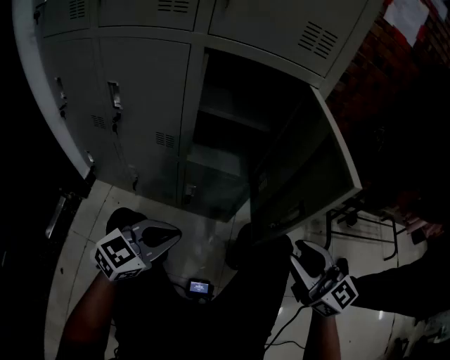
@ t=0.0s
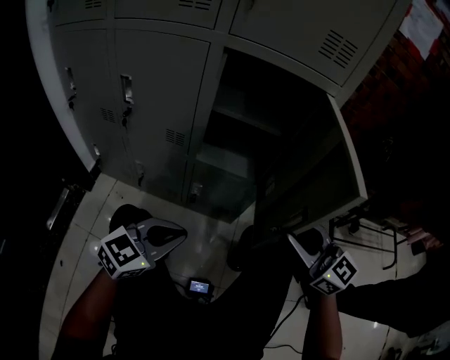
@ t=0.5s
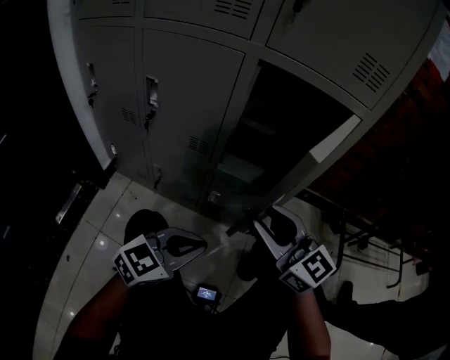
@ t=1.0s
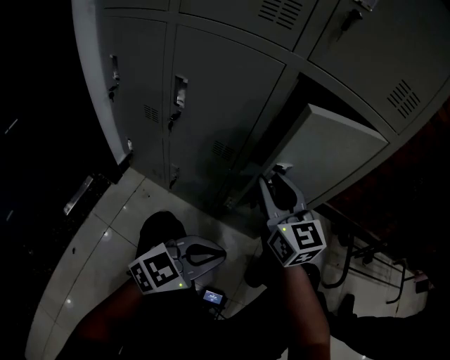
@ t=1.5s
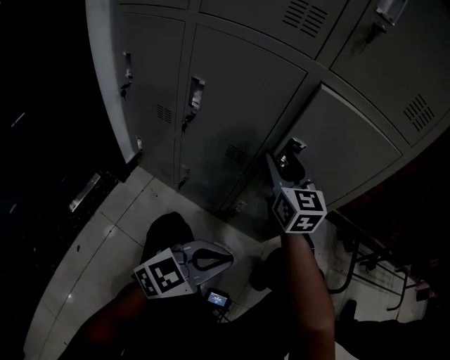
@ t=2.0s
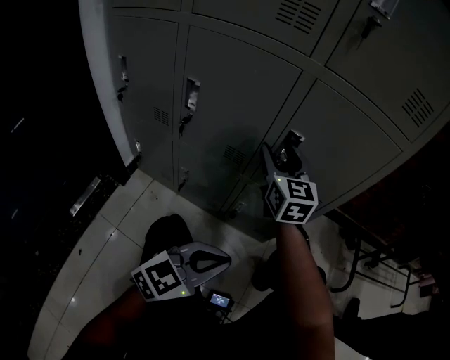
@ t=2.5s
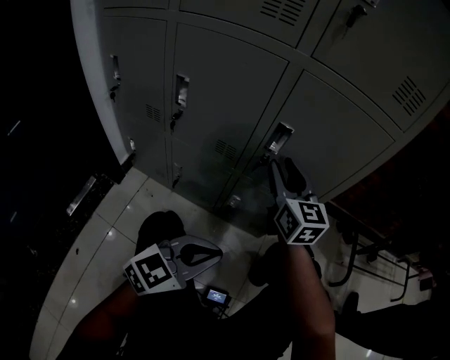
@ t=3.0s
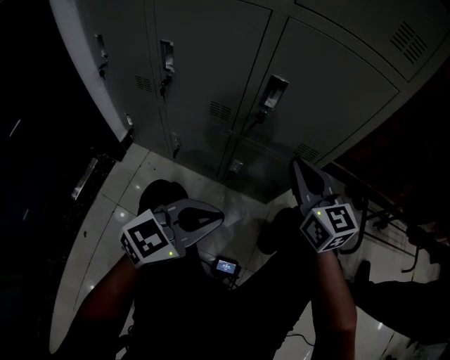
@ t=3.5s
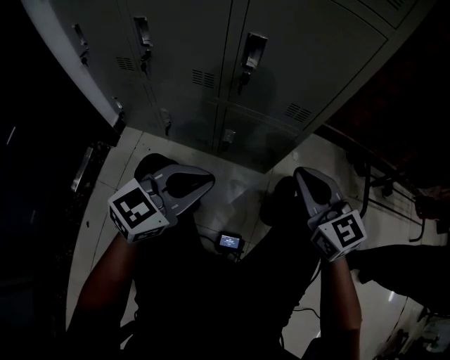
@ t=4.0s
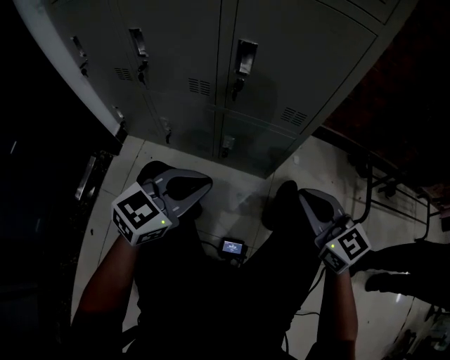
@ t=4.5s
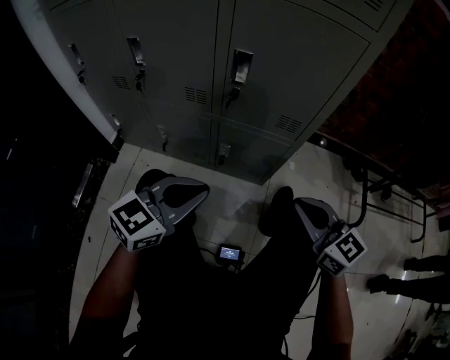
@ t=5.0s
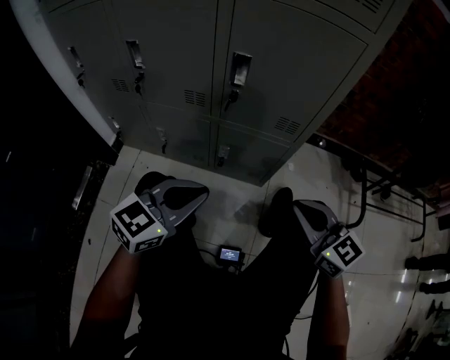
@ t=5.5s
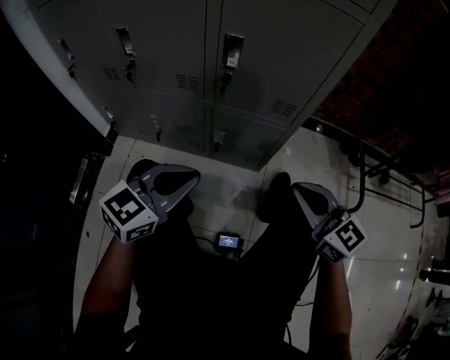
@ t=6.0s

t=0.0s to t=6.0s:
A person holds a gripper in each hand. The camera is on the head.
t=0.0s to t=2.0s: The right gripper shifts about 40 cm to the left and forward.
t=2.0s to t=4.0s: The right gripper heads to the right and backward, covering some 25 cm, and closes.
t=4.0s to t=6.0s: The right gripper moves some 5 cm.

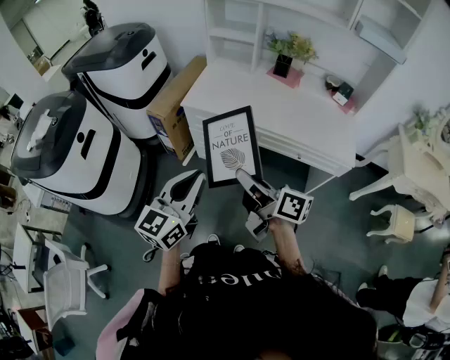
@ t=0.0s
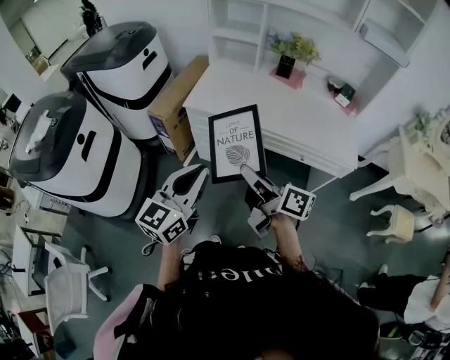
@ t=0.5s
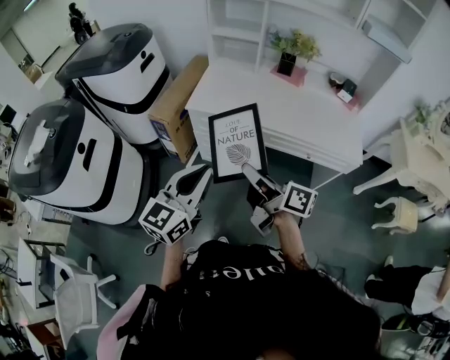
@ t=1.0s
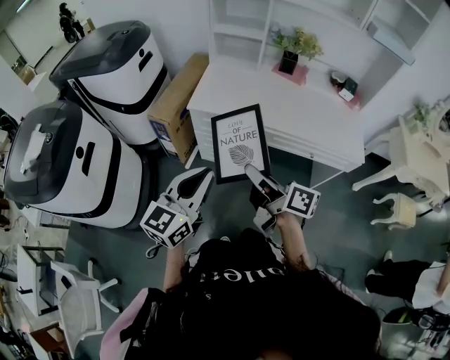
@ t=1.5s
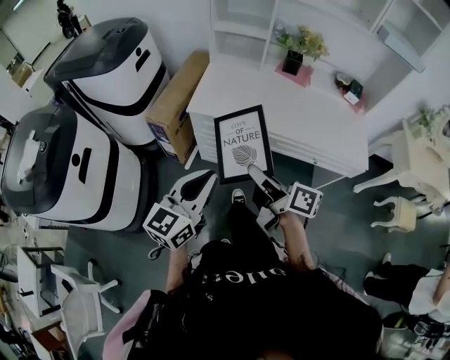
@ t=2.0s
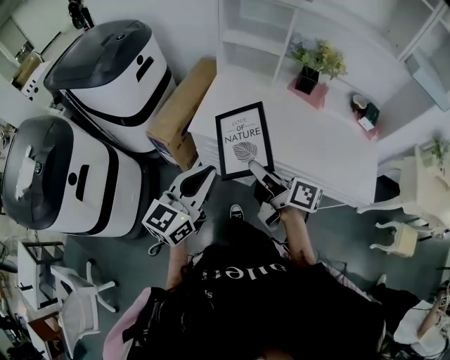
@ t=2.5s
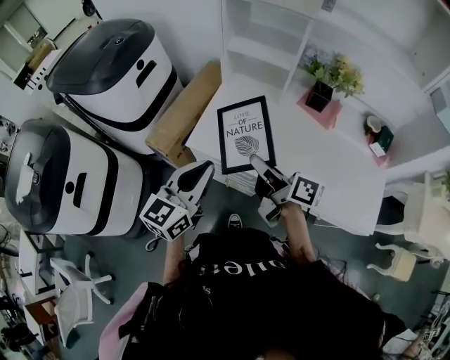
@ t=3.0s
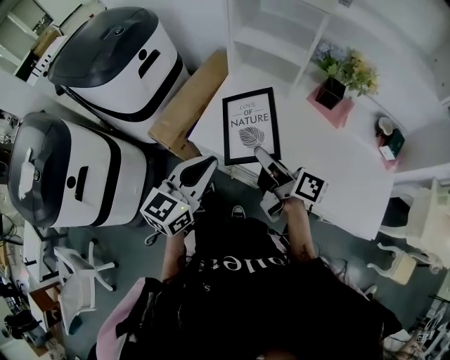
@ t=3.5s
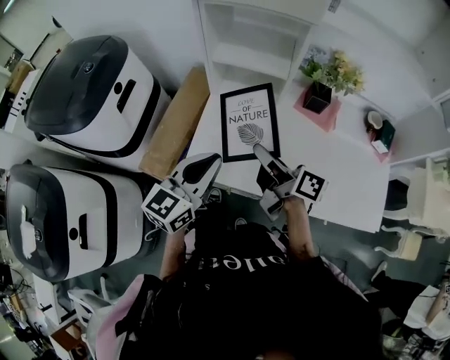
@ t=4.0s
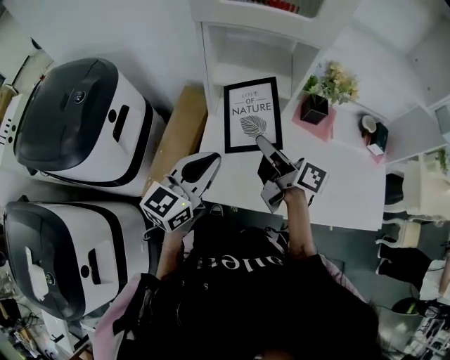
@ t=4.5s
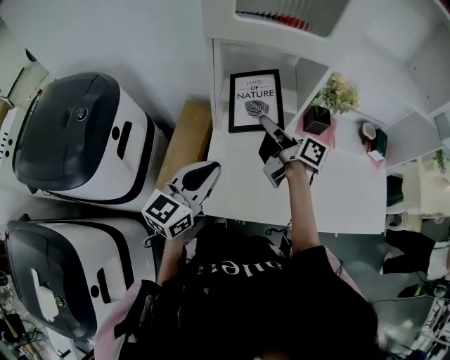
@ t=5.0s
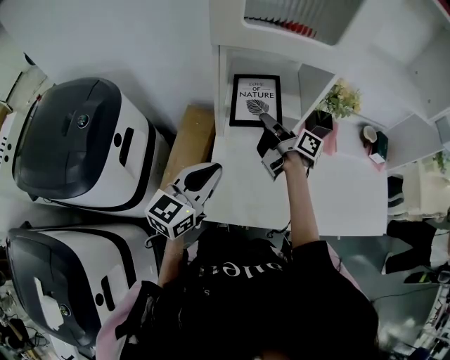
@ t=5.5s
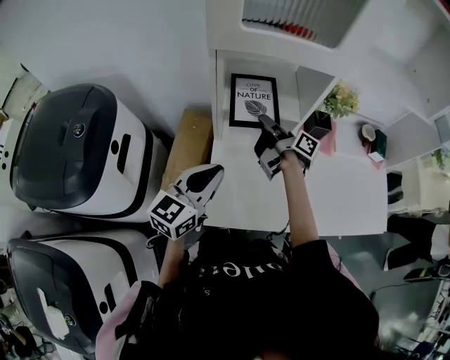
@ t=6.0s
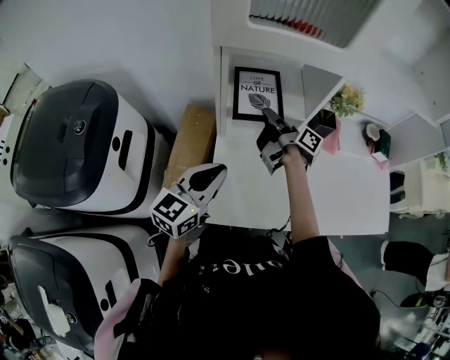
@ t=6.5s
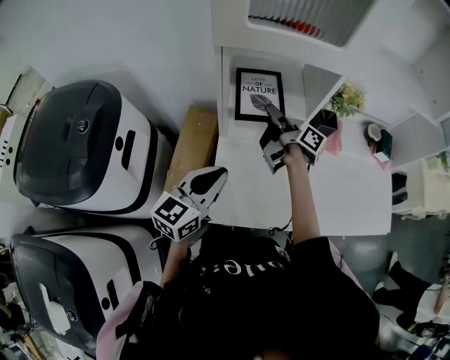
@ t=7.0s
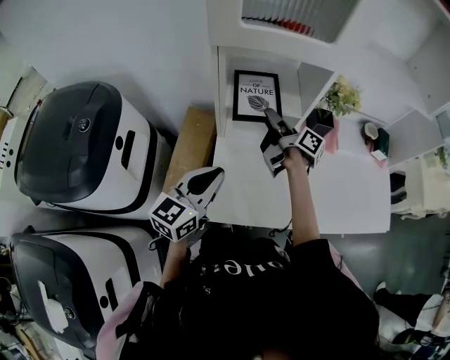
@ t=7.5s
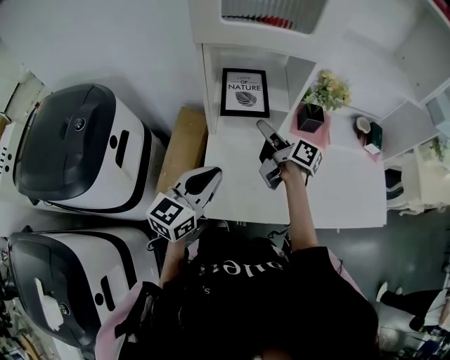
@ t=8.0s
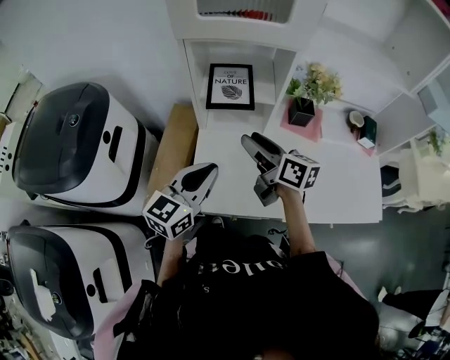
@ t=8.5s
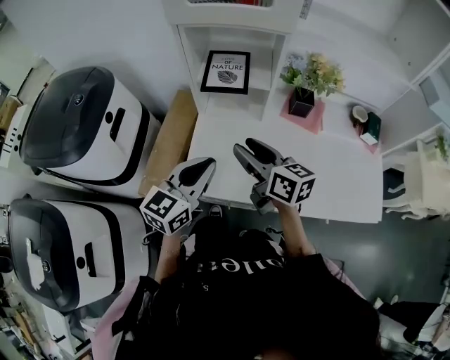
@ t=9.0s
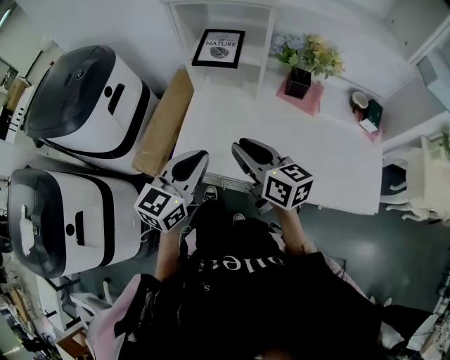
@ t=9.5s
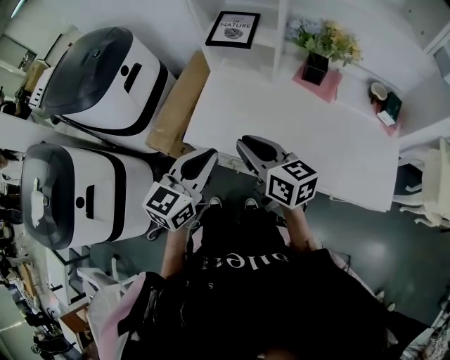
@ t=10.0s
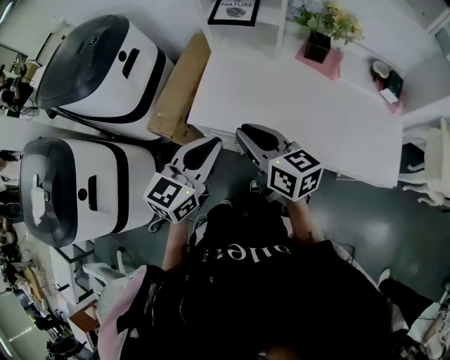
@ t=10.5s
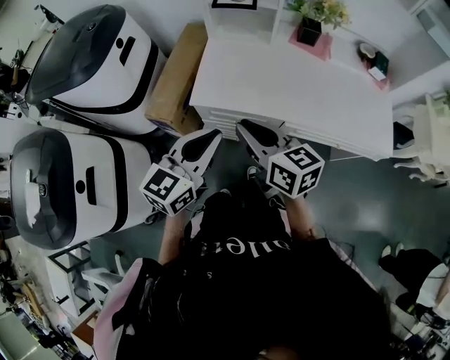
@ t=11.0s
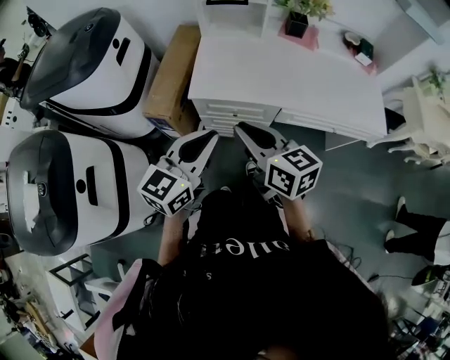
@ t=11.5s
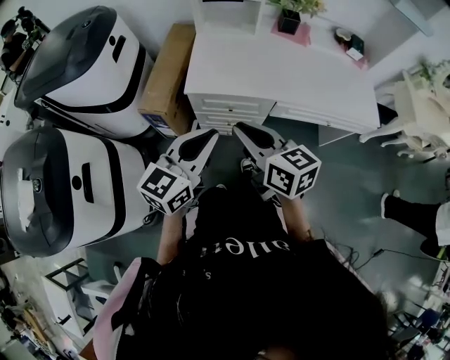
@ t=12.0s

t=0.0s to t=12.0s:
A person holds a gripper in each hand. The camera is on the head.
t=0.0s to t=2.0s: The grippers both shift forward and to the left by roughly 15 cm.
t=2.0s to t=4.0s: The two grippers travel together, forward, approximately 40 cm.
t=4.0s to t=6.0s: The right gripper is displaced forward by some 25 cm, and changes its angle by some 30 degrees. The left gripper travels forward and to the left by about 15 cm.
t=6.0s to t=8.0s: The right gripper moves backward, roughly 5 cm, and opens. Meanwhile the left gripper shifts by approximately 5 cm.
t=8.0s to t=10.0s: The left gripper goes roughly 25 cm backward and to the right. The right gripper shifts some 30 cm backward, rotates about 50 degrees, and closes.
t=10.0s to t=12.0s: The two grippers go approximately 25 cm backward and to the left.

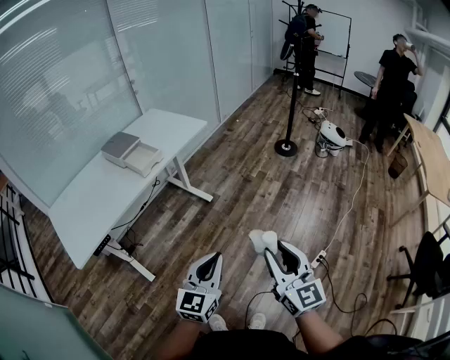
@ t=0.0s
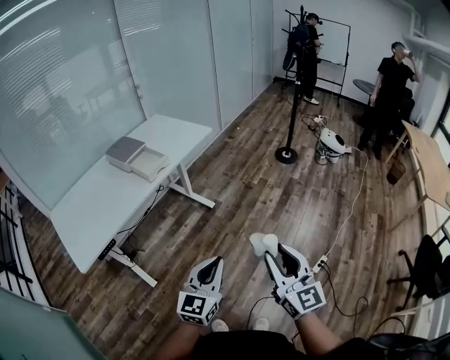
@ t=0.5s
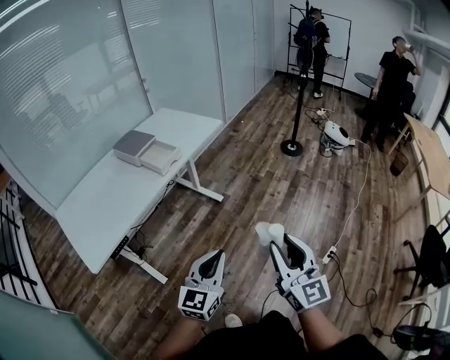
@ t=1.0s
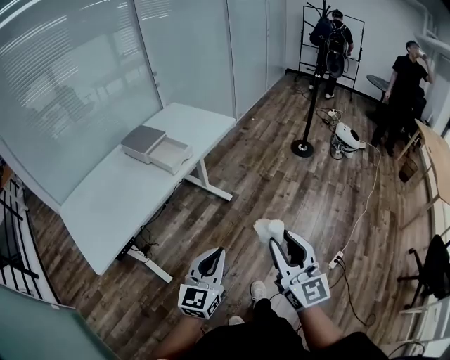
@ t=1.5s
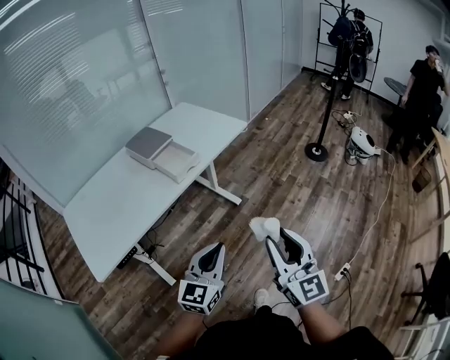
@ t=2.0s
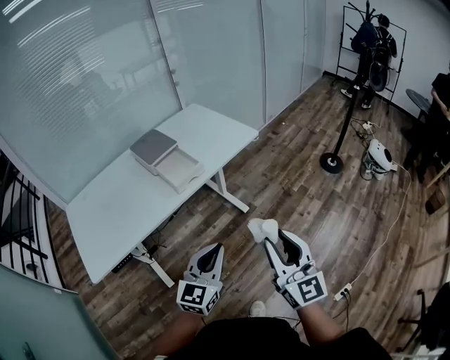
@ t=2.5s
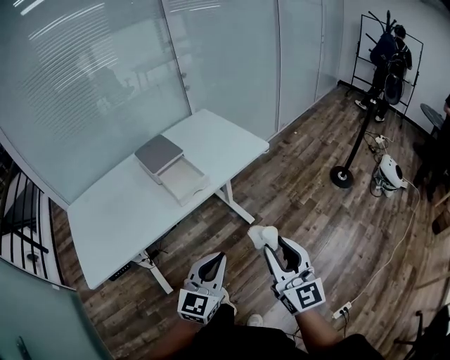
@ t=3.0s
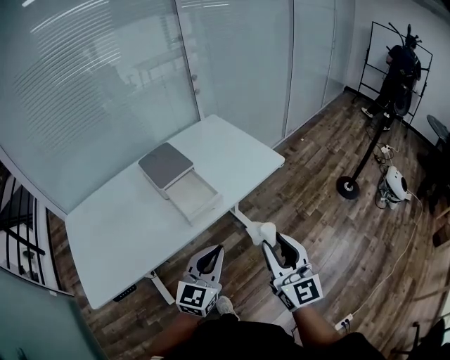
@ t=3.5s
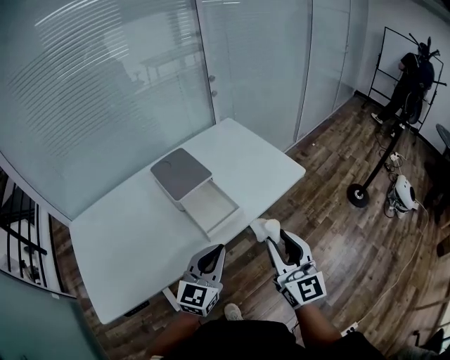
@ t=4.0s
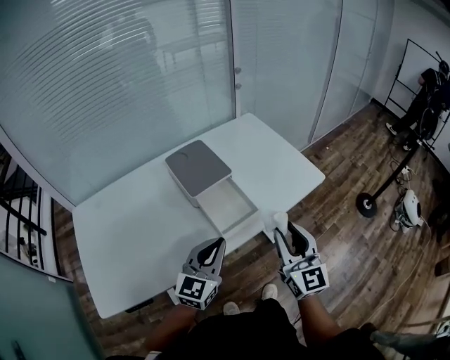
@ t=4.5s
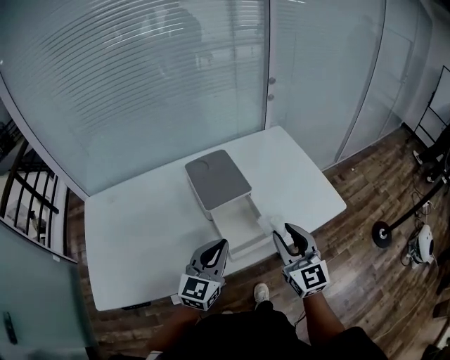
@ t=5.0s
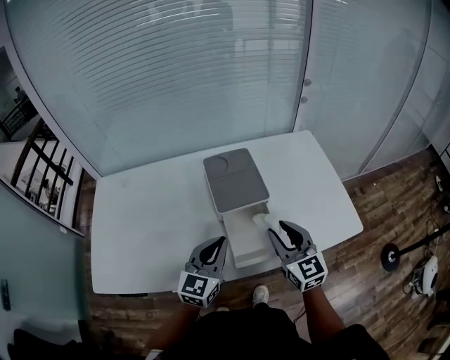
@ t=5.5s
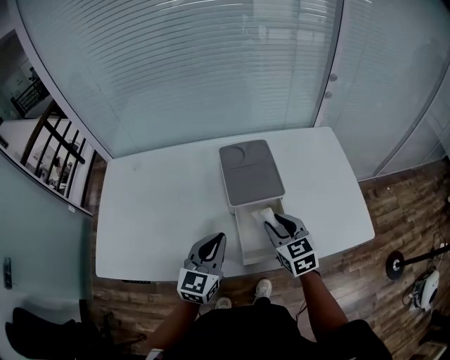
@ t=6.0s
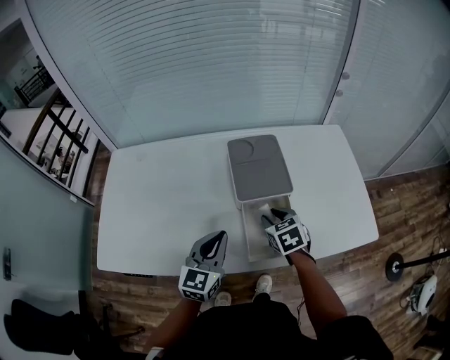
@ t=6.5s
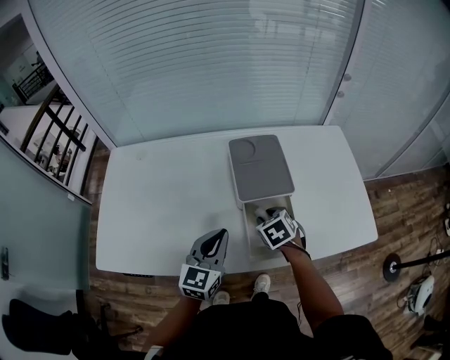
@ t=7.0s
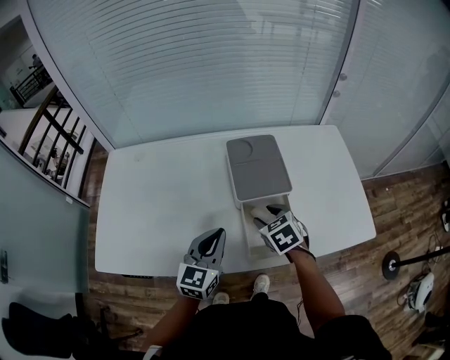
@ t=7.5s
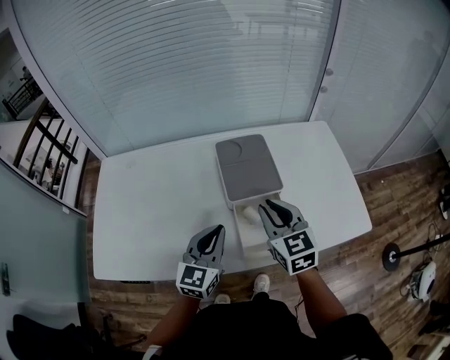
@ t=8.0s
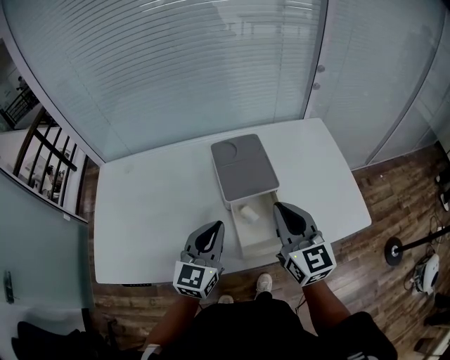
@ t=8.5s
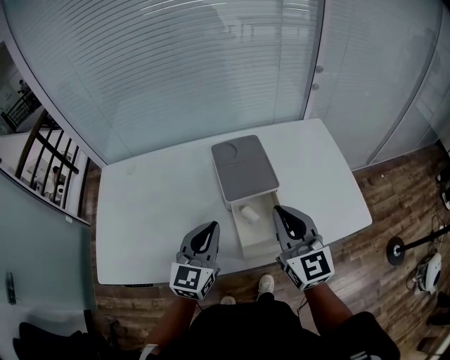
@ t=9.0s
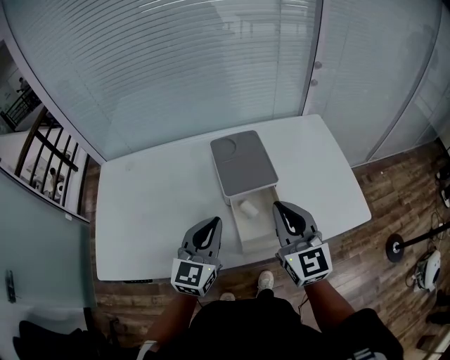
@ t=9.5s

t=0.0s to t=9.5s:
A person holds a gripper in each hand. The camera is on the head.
t=0.0s to t=2.0s: Both grippers move to the left and forward, some 20 cm.
t=2.0s to t=4.0s: The two grippers go approximately 35 cm forward.
t=4.0s to t=5.5s: The left gripper changes place by about 15 cm, and turns by approximately 30 degrees. The right gripper changes place by about 25 cm, and swivels about 30 degrees.
t=5.5s to t=7.5s: The left gripper is displaced to the left by roughly 5 cm. Meanwhile the right gripper is displaced downward, to the left and forward by approximately 15 cm, and angles its fingers downward, by some 40 degrees.
t=7.5s to t=9.5s: The right gripper travels upward by approximately 20 cm, tilts its fingers some 50 degrees upward, and closes up; the left gripper goes roughly 5 cm upward.
